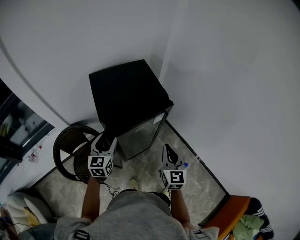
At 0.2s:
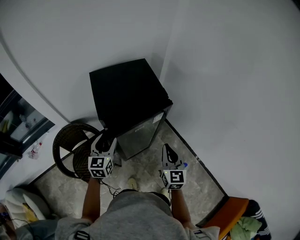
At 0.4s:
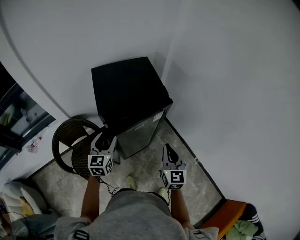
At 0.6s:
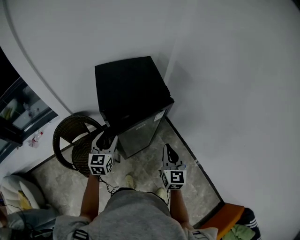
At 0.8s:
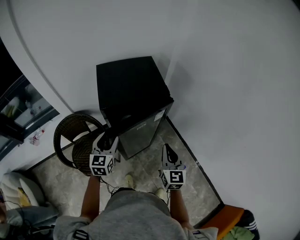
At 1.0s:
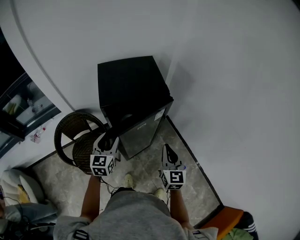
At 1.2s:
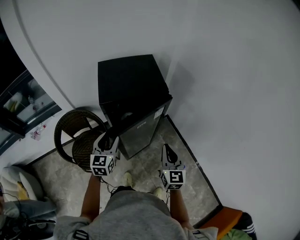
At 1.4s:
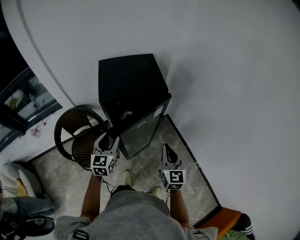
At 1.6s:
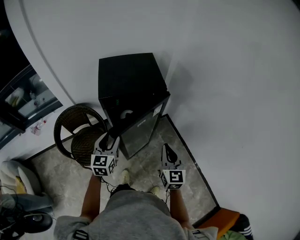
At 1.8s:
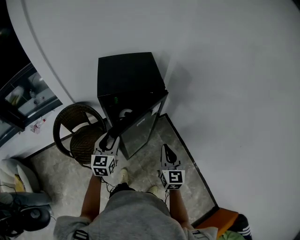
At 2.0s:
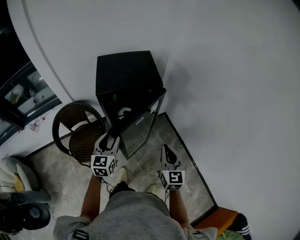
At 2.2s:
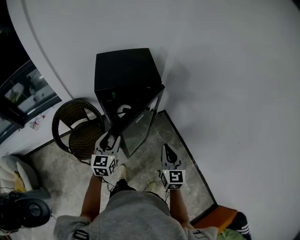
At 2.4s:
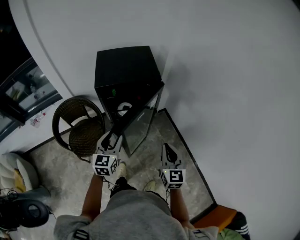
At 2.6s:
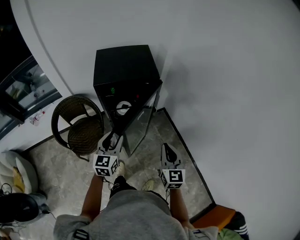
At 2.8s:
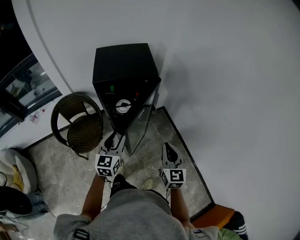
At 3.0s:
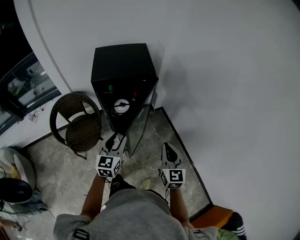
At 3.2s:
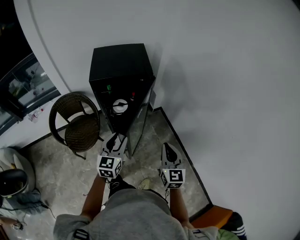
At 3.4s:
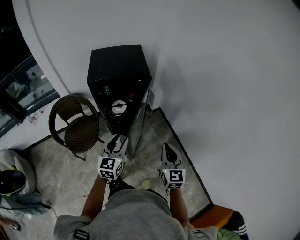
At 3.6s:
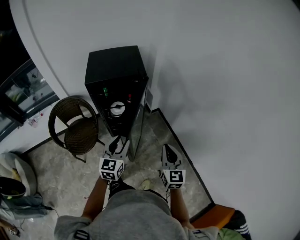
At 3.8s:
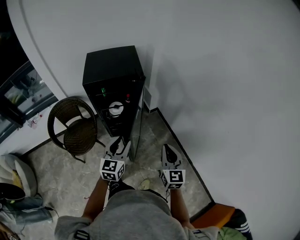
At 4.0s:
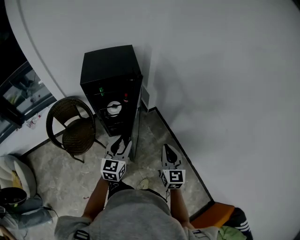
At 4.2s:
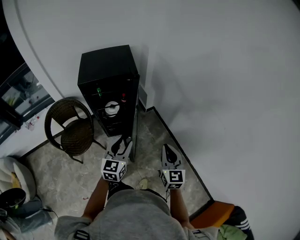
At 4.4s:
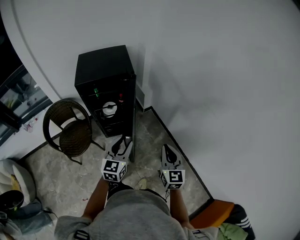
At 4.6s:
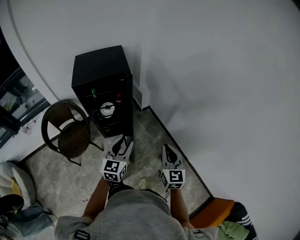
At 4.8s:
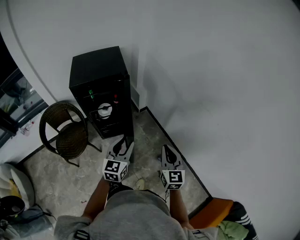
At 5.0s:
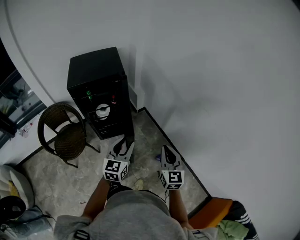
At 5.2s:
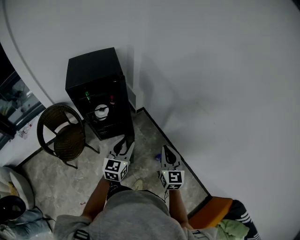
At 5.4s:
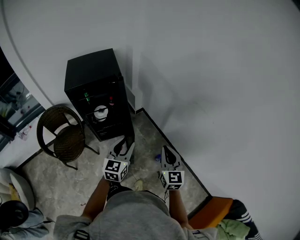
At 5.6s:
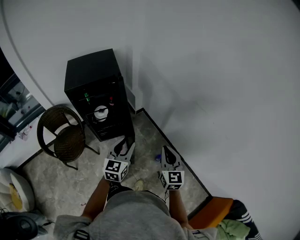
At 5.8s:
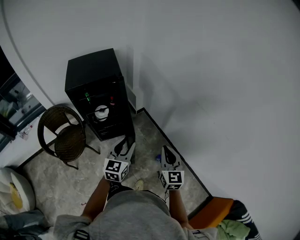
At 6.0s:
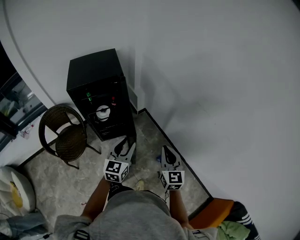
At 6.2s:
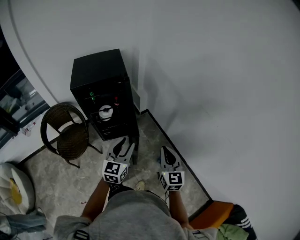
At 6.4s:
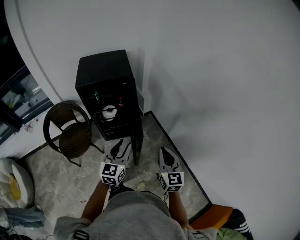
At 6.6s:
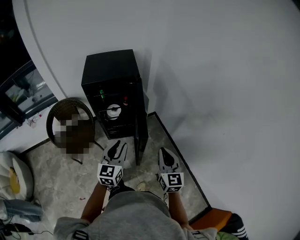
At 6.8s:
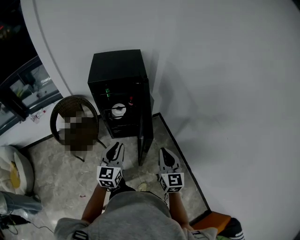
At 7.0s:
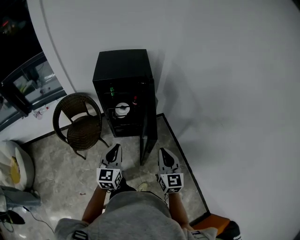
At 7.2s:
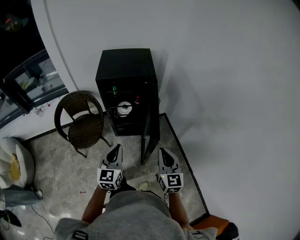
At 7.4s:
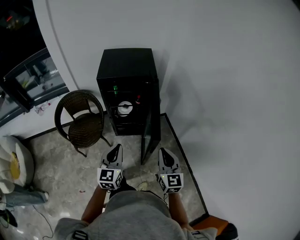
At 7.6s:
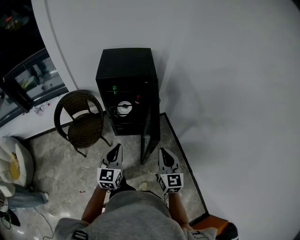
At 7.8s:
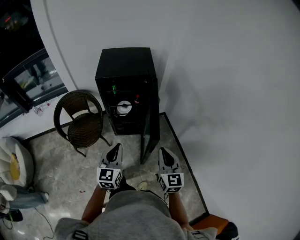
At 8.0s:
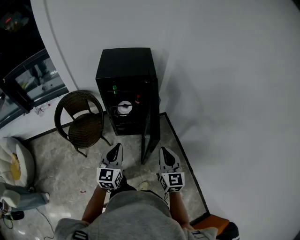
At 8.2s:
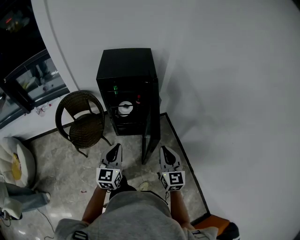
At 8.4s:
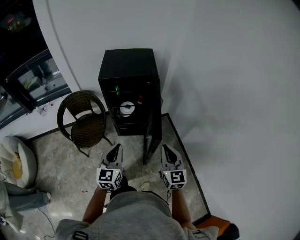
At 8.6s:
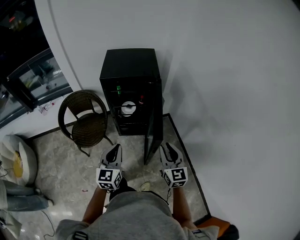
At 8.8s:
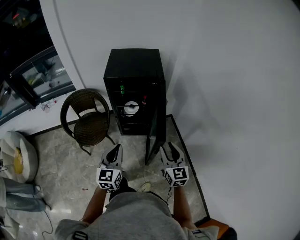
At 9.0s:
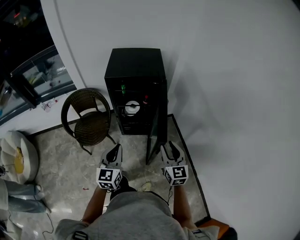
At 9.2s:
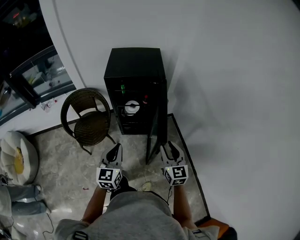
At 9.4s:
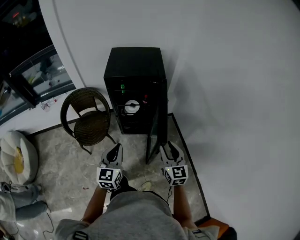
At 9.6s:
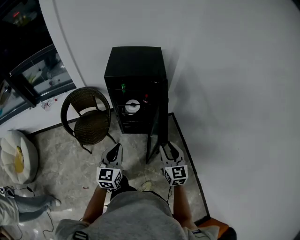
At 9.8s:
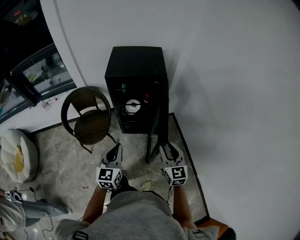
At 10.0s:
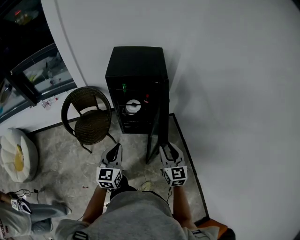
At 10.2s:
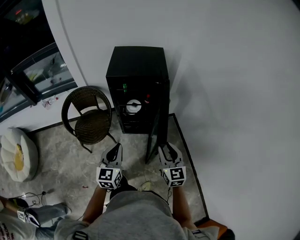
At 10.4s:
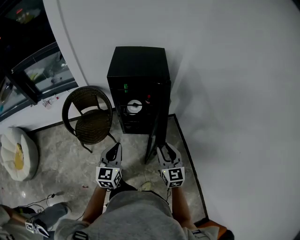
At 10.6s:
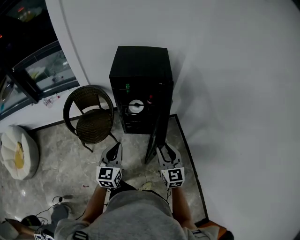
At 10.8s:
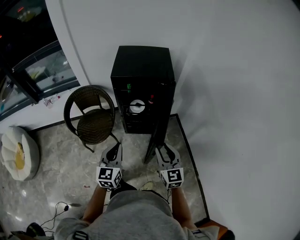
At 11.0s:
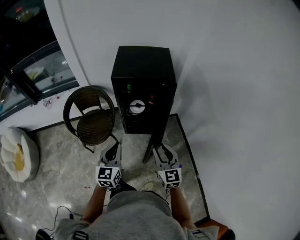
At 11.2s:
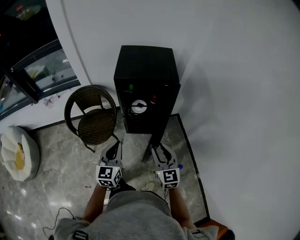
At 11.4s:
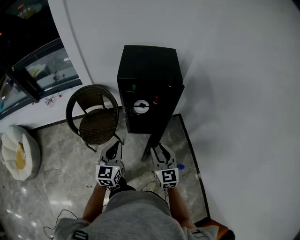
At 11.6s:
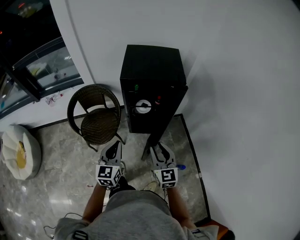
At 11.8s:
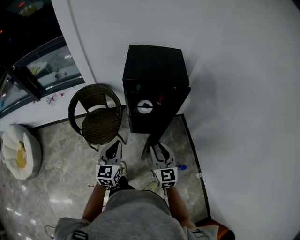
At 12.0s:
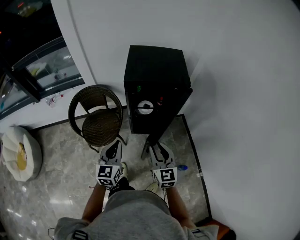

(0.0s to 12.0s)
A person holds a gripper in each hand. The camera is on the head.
0.0s - 1.6s: The right gripper shifts about 10 cm backward and to the right, while the left gripper is displaced backward and to the right by some 10 cm.
1.6s - 3.0s: The left gripper is displaced to the right and backward by roughly 15 cm, while the right gripper moves backward and to the right, roughly 10 cm.
3.0s - 4.4s: The two grippers go about 10 cm to the right.
4.4s - 6.0s: The left gripper shifts approximately 5 cm to the right.
6.0s - 7.6s: Both grippers move to the left, roughly 15 cm. The left gripper changes its angle by some 20 degrees, and closes its fingers.
7.6s - 9.0s: The right gripper opens up.
9.0s - 10.4s: The grippers make only small movements.
10.4s - 12.0s: The grippers both shift to the left and forward by about 15 cm.

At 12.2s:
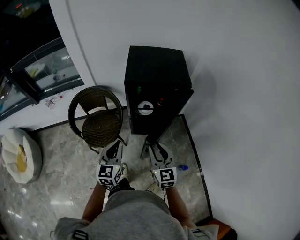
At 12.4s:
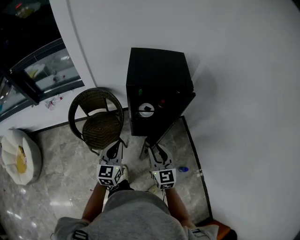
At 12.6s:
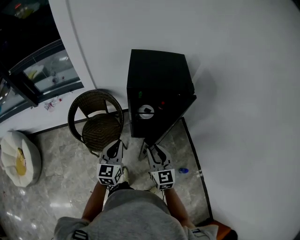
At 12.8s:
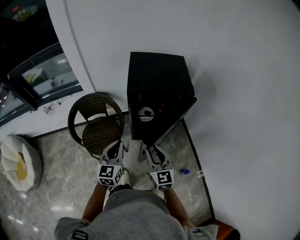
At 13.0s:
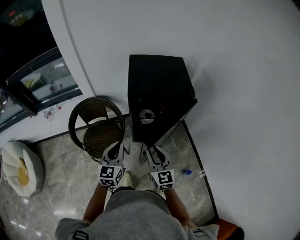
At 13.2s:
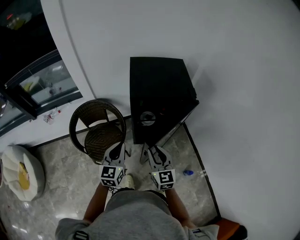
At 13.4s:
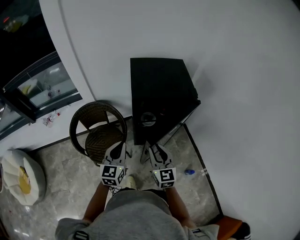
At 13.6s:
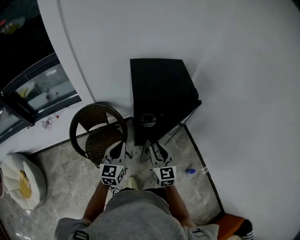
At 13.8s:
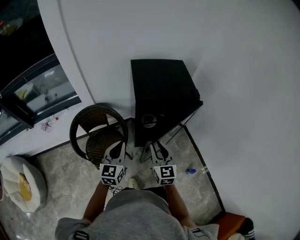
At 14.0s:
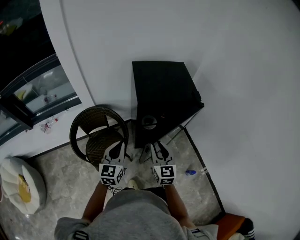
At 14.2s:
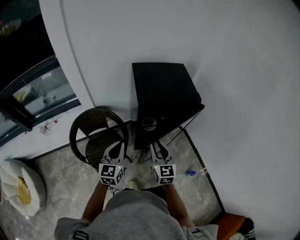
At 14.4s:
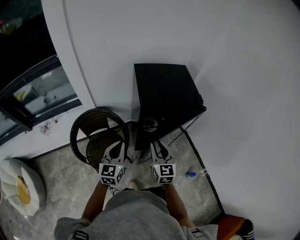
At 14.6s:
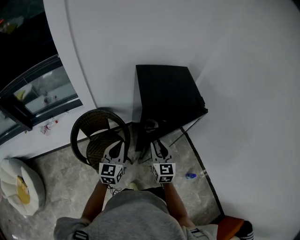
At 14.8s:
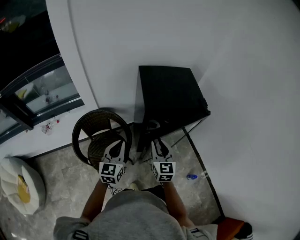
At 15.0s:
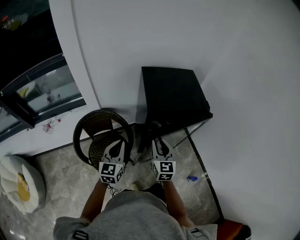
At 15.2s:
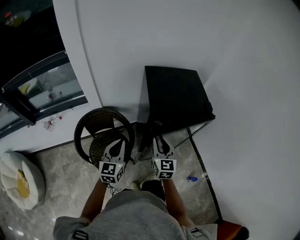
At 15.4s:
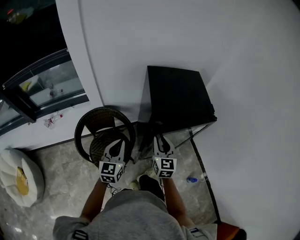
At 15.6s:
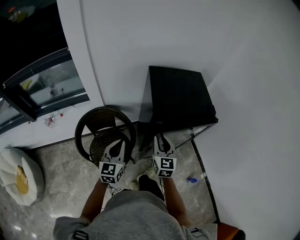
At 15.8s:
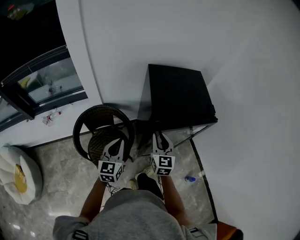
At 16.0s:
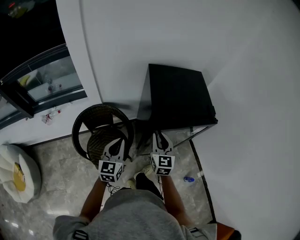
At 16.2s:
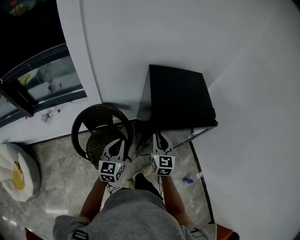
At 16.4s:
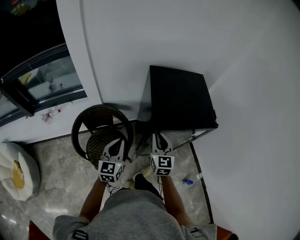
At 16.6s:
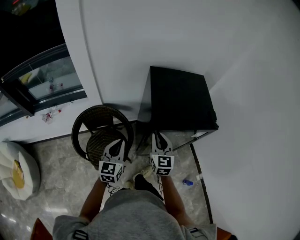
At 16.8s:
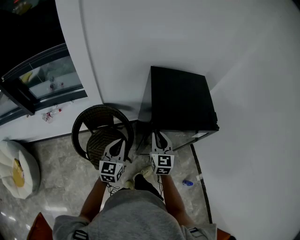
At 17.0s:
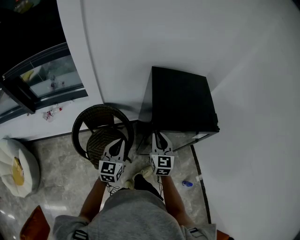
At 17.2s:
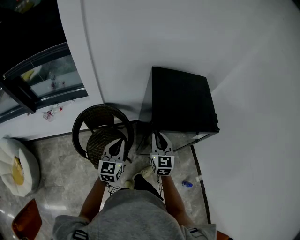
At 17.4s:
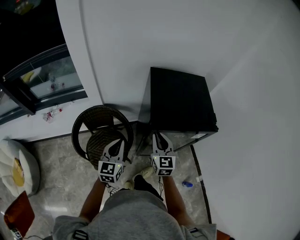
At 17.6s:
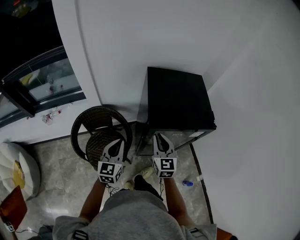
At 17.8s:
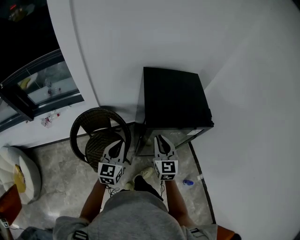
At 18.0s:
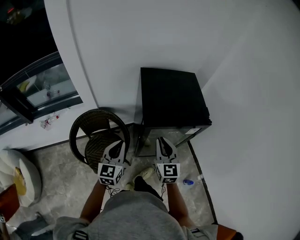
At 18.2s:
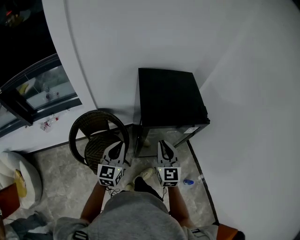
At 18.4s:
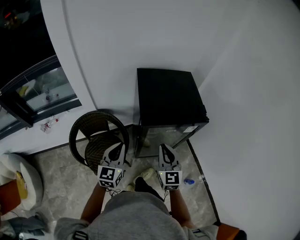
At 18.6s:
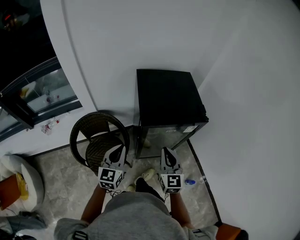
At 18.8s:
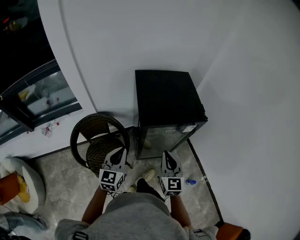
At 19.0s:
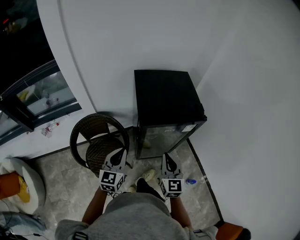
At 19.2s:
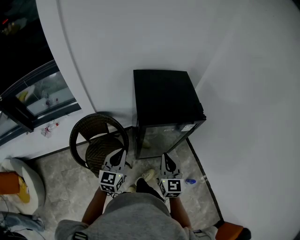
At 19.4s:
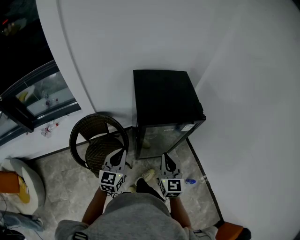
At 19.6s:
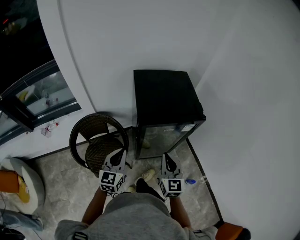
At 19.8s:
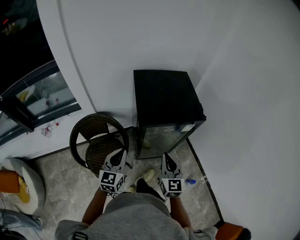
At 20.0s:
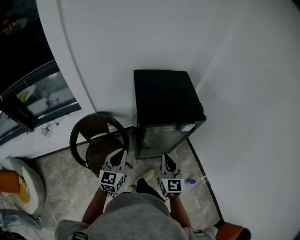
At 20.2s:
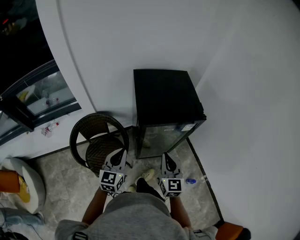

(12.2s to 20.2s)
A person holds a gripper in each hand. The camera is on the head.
12.2s - 13.8s: Both grippers travel together forward and to the left, roughly 15 cm.
13.8s - 15.4s: The left gripper heads to the left and forward, covering about 10 cm. Meanwhile the right gripper shifts approximately 10 cm forward and to the left.
15.4s - 17.0s: The right gripper shifts roughly 5 cm forward.
17.0s - 18.6s: The left gripper ends up approximately 5 cm from where it was. The right gripper goes some 15 cm backward and to the right.
18.6s - 20.2s: There are only small adjustments of the grippers.

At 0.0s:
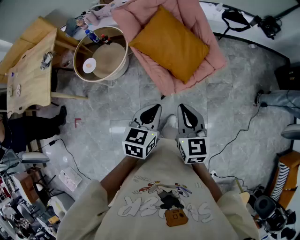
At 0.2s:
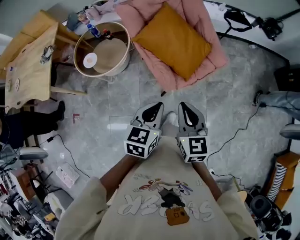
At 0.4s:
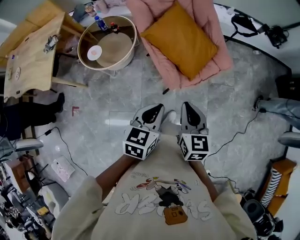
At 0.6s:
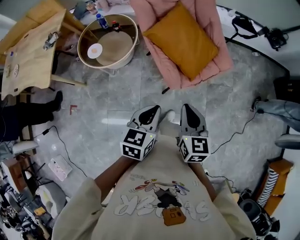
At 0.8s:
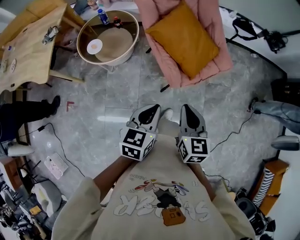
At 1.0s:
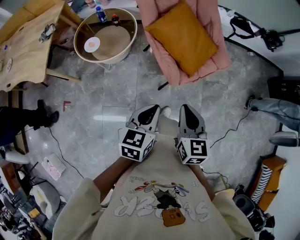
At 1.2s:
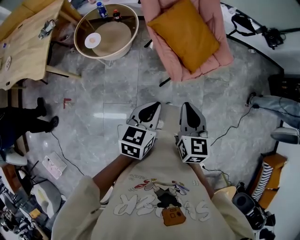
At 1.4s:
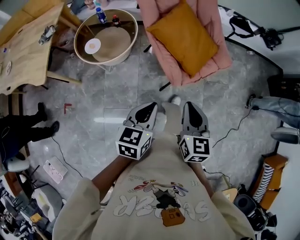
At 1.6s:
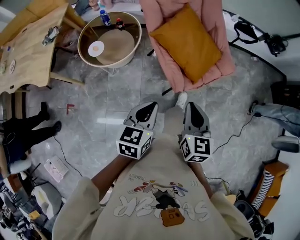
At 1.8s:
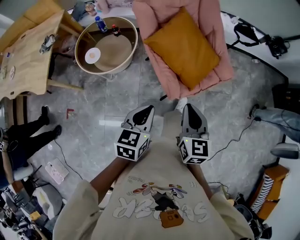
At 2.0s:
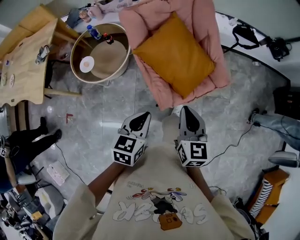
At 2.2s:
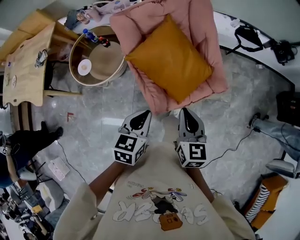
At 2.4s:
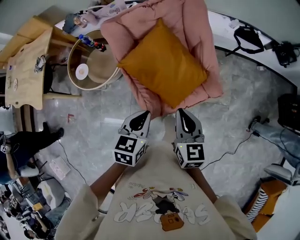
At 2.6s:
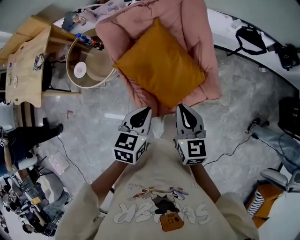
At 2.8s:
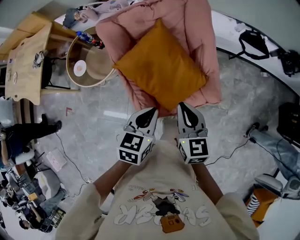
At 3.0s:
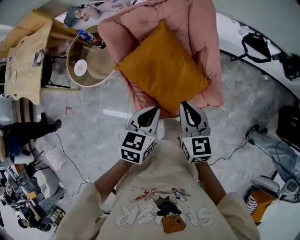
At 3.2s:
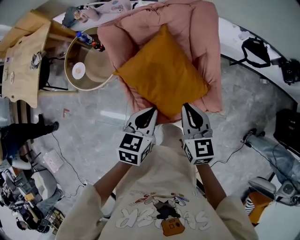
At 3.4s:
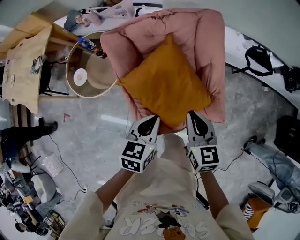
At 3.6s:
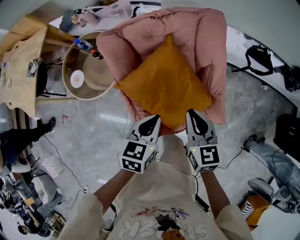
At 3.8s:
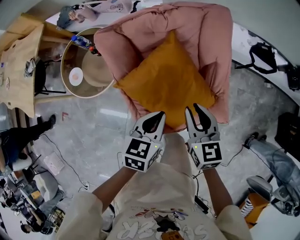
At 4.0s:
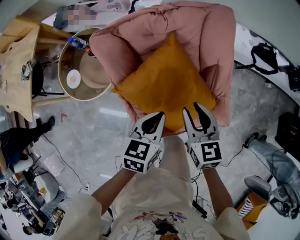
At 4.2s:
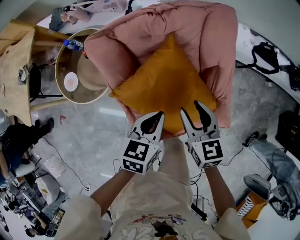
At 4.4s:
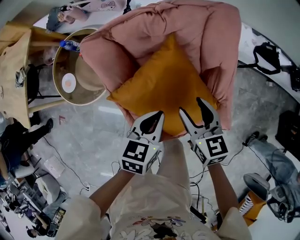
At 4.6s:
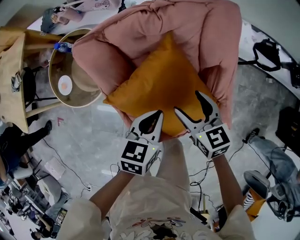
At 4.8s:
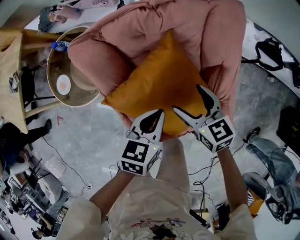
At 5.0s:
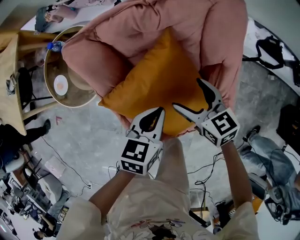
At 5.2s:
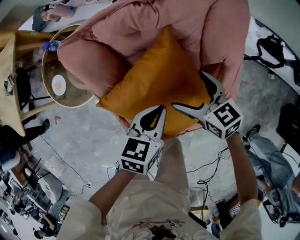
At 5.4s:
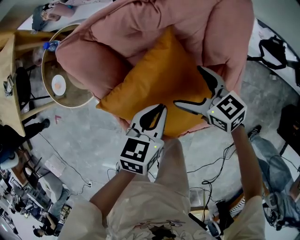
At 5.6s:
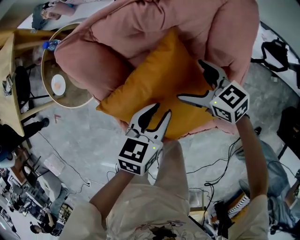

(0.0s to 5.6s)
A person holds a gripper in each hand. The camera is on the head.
0.0s - 1.4s: The left gripper goes about 15 cm to the left and backward; the right gripper shifts roughly 10 cm to the left.
1.4s - 2.8s: The pair of grippers is taken forward and to the right, about 40 cm. The right gripper turns by approximately 20 degrees.
2.8s - 4.2s: The grippers both shift forward and downward by roughly 20 cm.
4.2s - 5.6s: The right gripper is displaced downward and forward by about 20 cm, swivels approximately 30 degrees, and opens. Meanwhile the left gripper goes roughly 10 cm downward and forward.
